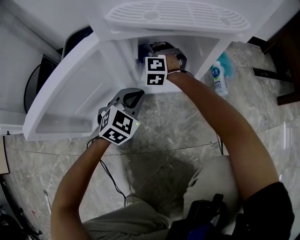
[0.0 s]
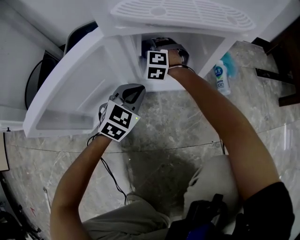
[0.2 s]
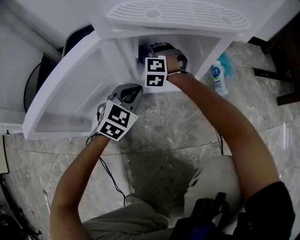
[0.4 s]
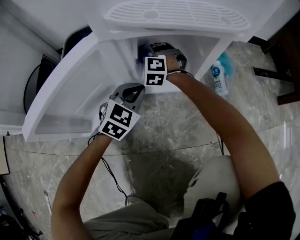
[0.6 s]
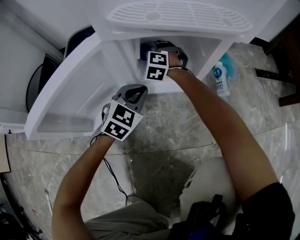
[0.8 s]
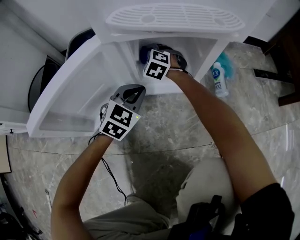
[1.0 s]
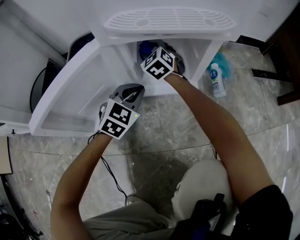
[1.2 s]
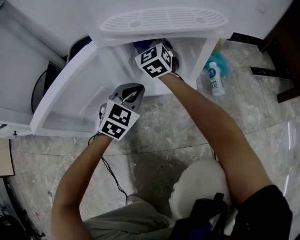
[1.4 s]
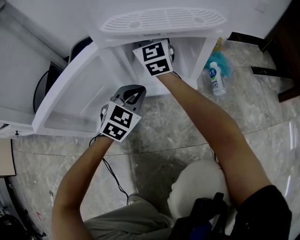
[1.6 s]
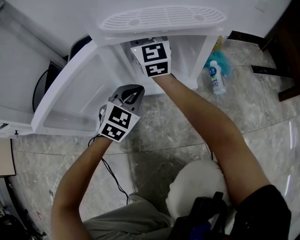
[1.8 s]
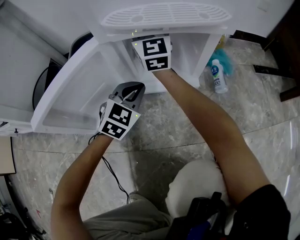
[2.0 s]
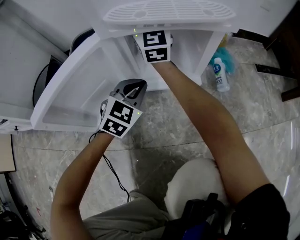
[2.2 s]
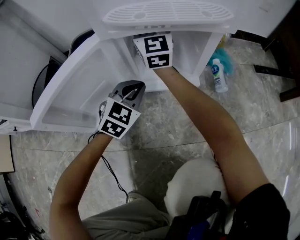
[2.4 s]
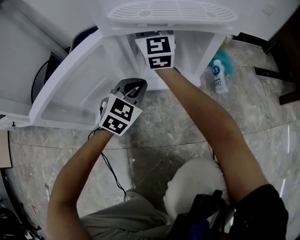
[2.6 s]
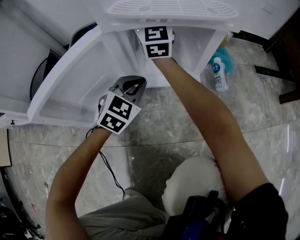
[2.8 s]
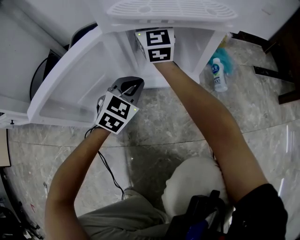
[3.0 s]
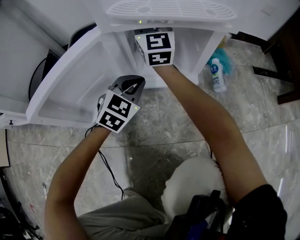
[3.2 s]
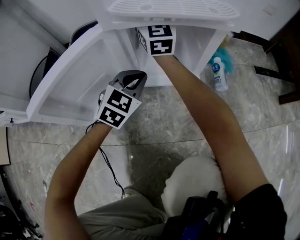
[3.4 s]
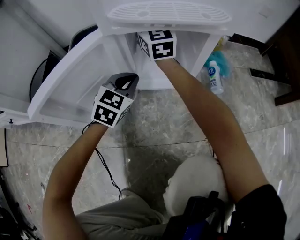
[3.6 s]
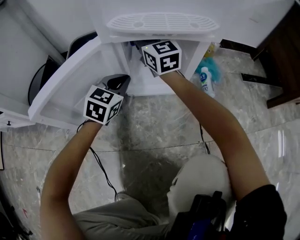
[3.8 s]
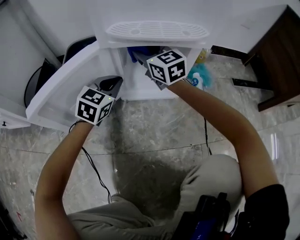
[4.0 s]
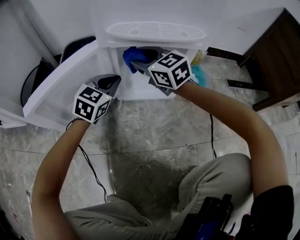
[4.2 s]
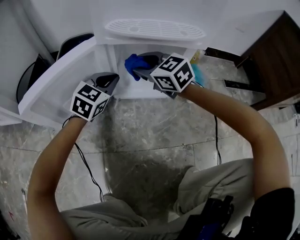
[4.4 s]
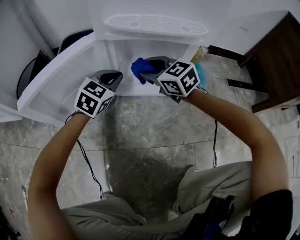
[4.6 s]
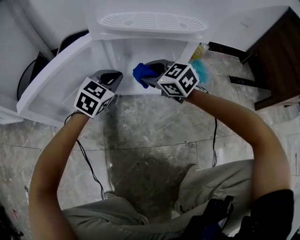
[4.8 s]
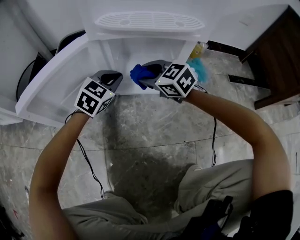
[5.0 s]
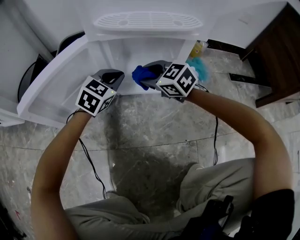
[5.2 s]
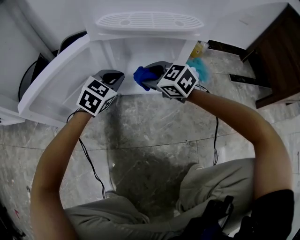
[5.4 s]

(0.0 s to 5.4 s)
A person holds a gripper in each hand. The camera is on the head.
0.0 s - 1.4 s: The right gripper shifts roughly 15 cm upward, and twists roughly 50 degrees clockwise, seen from behind. Meanwhile the left gripper moves roughly 5 cm.
1.4 s - 2.8 s: The right gripper is displaced upward by some 10 cm, and turns by approximately 30 degrees.
2.8 s - 4.0 s: The right gripper is displaced backward by about 10 cm, and turns by about 30 degrees; the left gripper shifts by approximately 5 cm.
4.0 s - 5.4 s: The right gripper shifts roughly 15 cm downward and backward, and changes its angle by approximately 30 degrees.

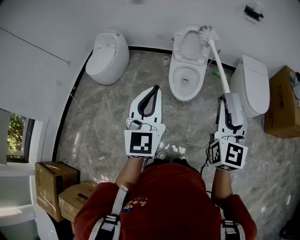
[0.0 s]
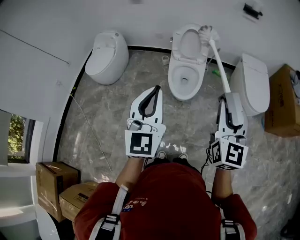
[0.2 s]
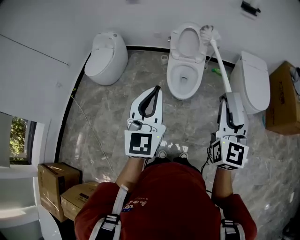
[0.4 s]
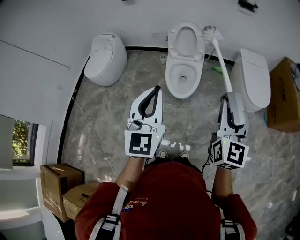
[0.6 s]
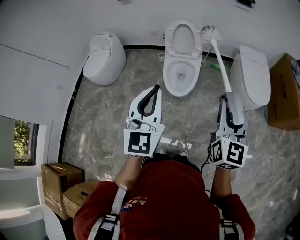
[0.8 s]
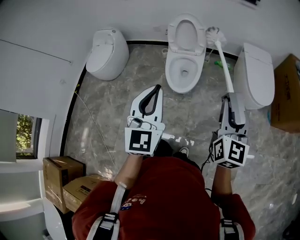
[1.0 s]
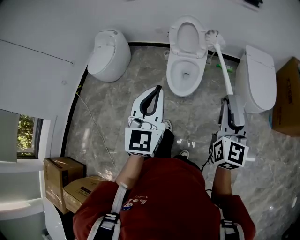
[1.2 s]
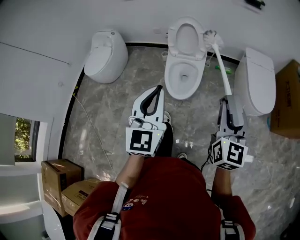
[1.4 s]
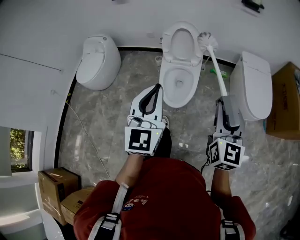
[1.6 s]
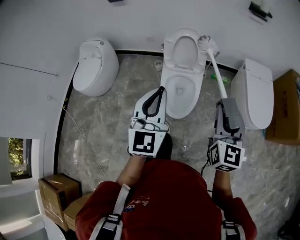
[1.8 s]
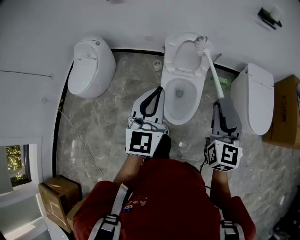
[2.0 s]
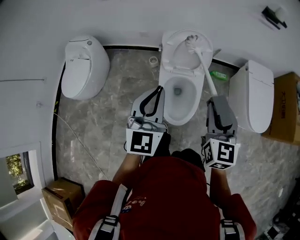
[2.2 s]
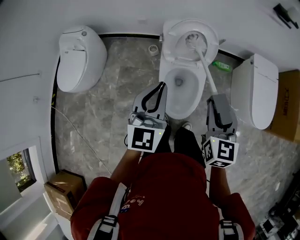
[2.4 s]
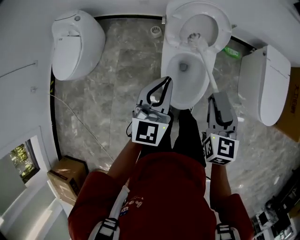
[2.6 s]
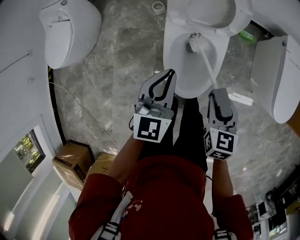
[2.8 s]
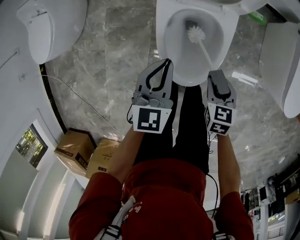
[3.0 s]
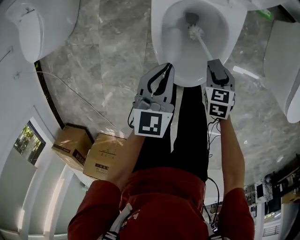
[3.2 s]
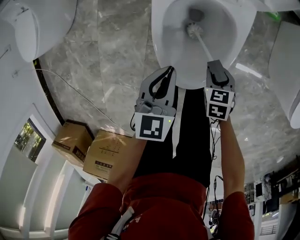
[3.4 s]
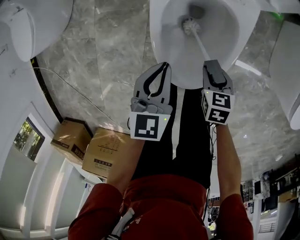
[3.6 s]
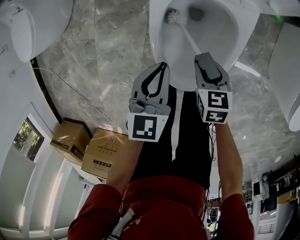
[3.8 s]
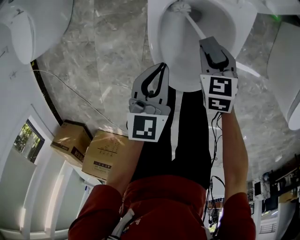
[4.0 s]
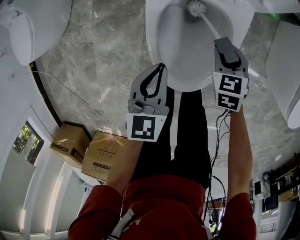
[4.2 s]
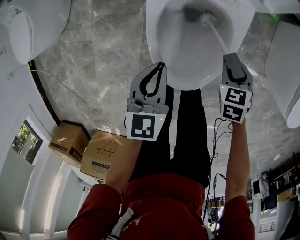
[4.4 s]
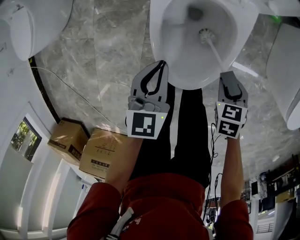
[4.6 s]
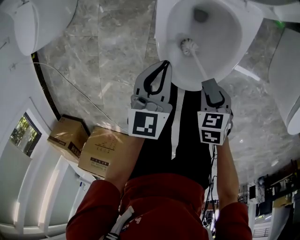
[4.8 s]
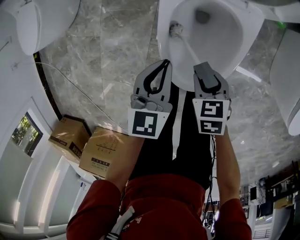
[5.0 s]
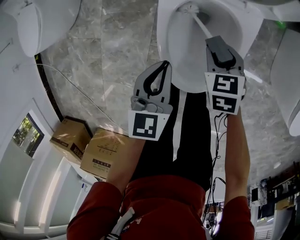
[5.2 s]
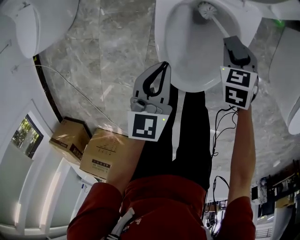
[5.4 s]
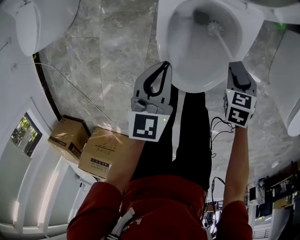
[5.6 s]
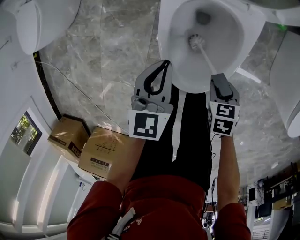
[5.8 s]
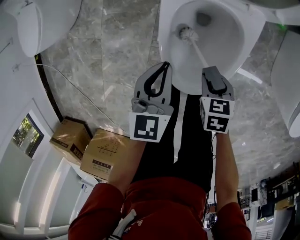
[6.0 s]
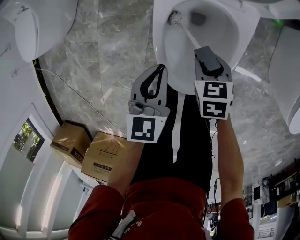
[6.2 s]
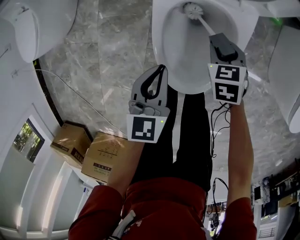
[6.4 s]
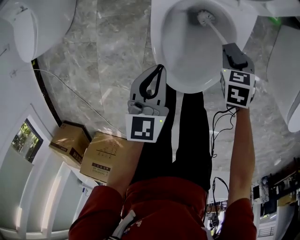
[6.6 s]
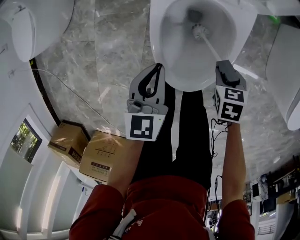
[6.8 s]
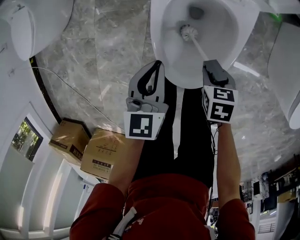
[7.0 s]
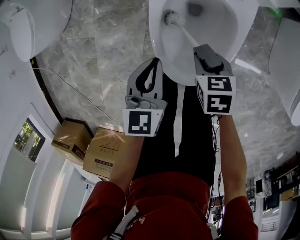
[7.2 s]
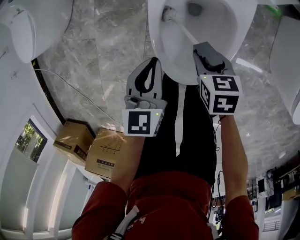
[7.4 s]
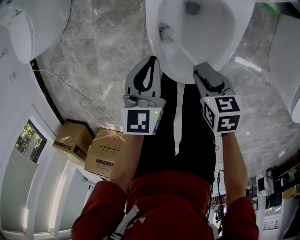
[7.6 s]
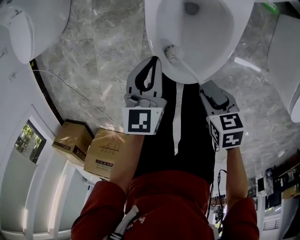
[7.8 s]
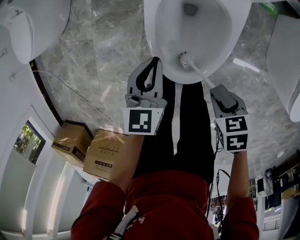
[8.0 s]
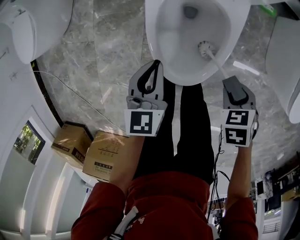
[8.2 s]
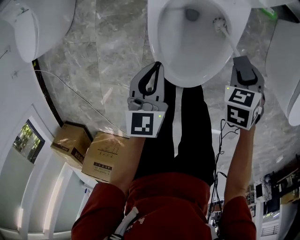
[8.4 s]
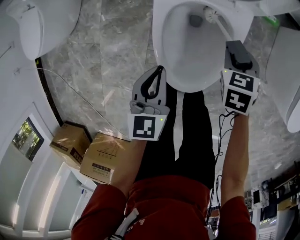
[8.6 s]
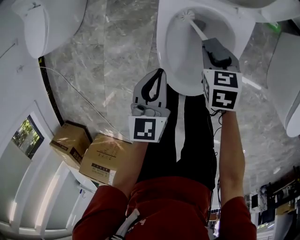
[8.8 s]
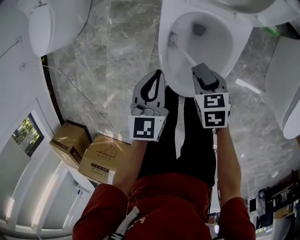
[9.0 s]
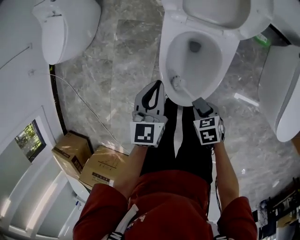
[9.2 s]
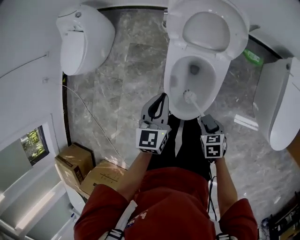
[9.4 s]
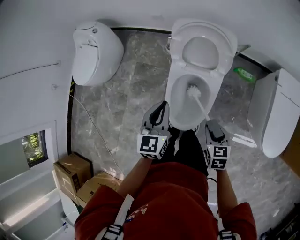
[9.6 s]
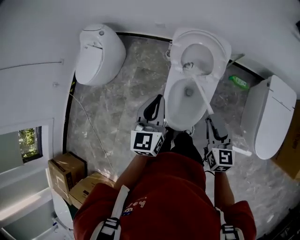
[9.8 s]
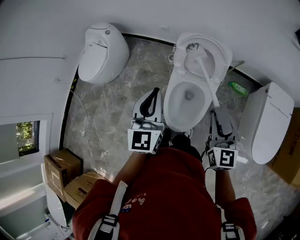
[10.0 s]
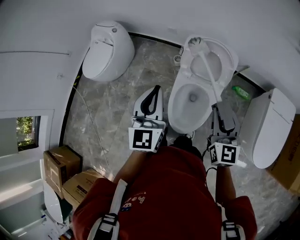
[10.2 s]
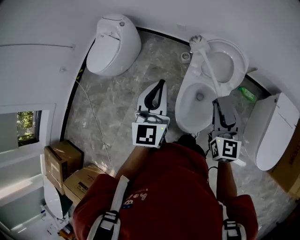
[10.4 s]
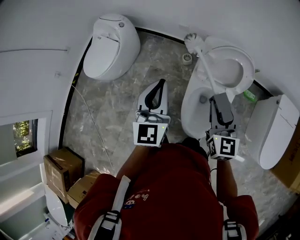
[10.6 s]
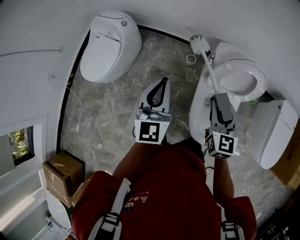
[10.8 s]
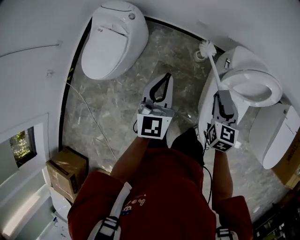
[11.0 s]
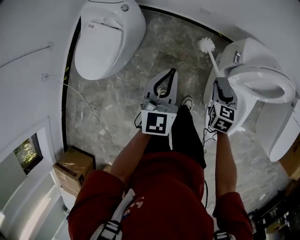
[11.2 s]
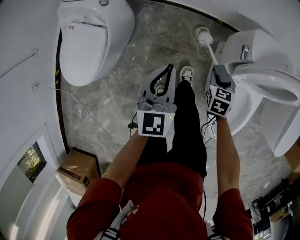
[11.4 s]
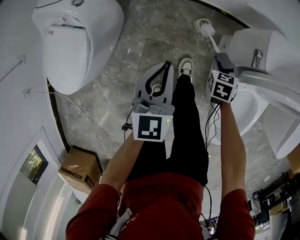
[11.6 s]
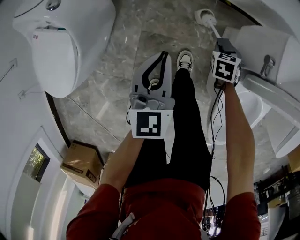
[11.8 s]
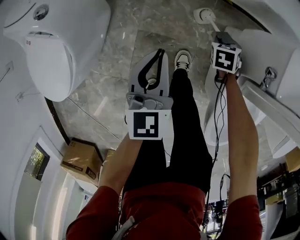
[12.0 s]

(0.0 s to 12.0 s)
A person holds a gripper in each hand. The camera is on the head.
0.0 s - 1.6 s: The right gripper is displaced forward, downward and to the right by about 20 cm. The left gripper goes roughly 20 cm forward and to the right.
1.6 s - 3.0 s: Both grippers travel together downward and forward, roughly 60 cm. The right gripper tips its fingers downward by about 50 degrees. Meanwhile the left gripper tips its fingers downward by some 30 degrees.
3.0 s - 4.4 s: The left gripper moves downward, about 10 cm; the right gripper moves downward and forward, some 15 cm.
4.4 s - 6.0 s: The right gripper changes place by some 10 cm.
9.0 s - 10.4 s: Both grippers move upward, about 40 cm. The left gripper tilts its fingers some 30 degrees upward, while the right gripper angles its fingers upward, by roughly 50 degrees.
10.4 s - 12.0 s: Both grippers are carried roughly 40 cm. Both grippers travel together downward, roughly 50 cm. The left gripper swivels about 20 degrees. The right gripper tilts its fingers some 60 degrees downward.

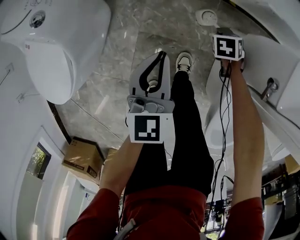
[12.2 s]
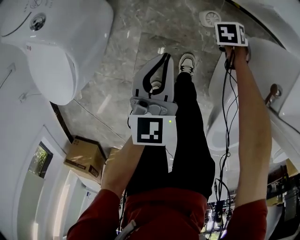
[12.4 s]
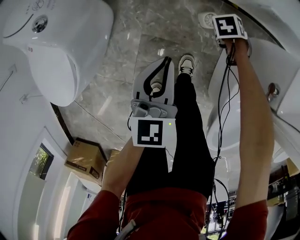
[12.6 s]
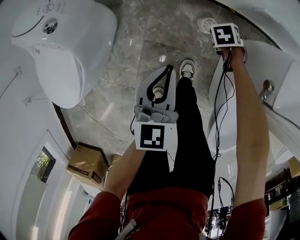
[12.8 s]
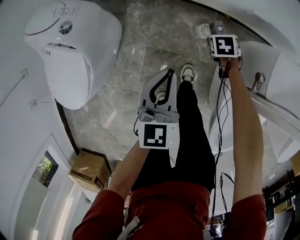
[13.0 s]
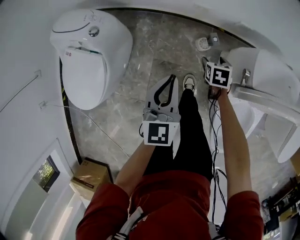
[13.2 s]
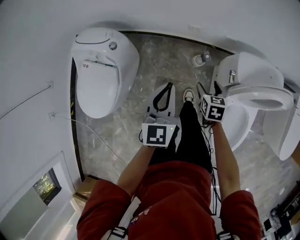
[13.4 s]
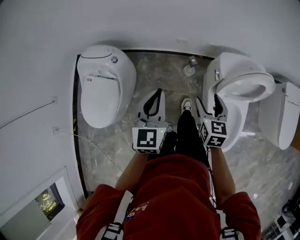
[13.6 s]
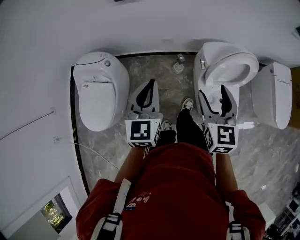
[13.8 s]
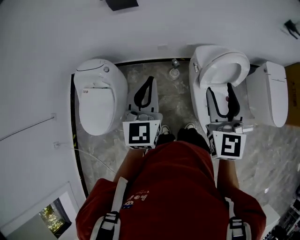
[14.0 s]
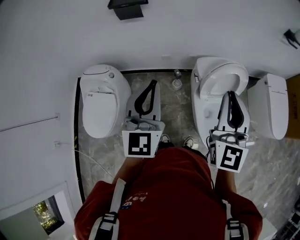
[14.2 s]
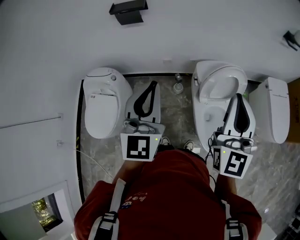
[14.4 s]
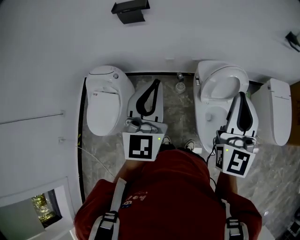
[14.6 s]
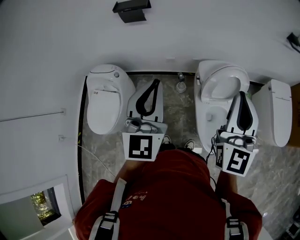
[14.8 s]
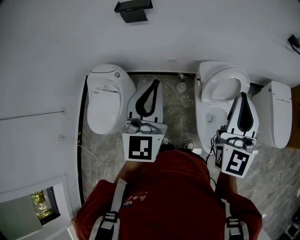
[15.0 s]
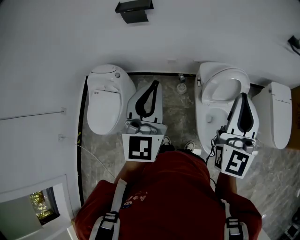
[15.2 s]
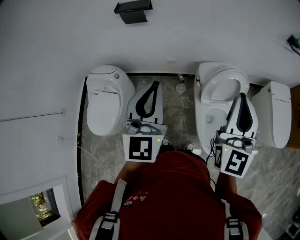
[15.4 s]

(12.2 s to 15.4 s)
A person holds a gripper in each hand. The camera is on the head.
12.2 s - 13.8 s: The left gripper moves upward, approximately 40 cm, and turns by roughly 20 degrees, while the right gripper is displaced upward by approximately 70 cm, tips its fingers upward by roughly 60 degrees, and opens.
13.8 s - 15.4 s: Both grippers travel together upward and to the right, roughly 20 cm. The right gripper tilts its fingers roughly 30 degrees upward, and closes up.

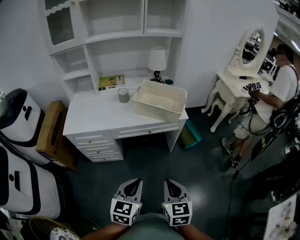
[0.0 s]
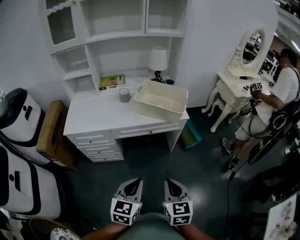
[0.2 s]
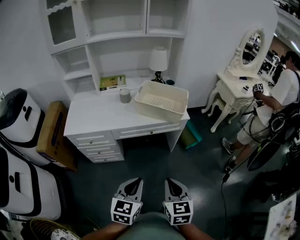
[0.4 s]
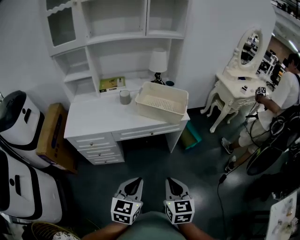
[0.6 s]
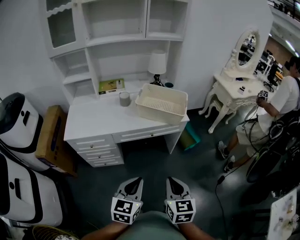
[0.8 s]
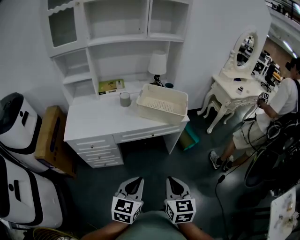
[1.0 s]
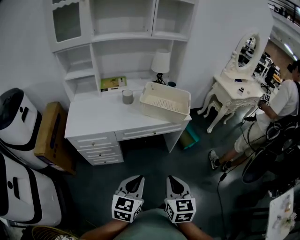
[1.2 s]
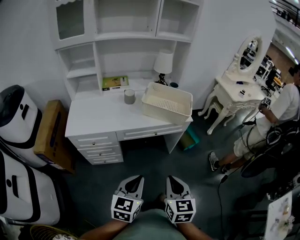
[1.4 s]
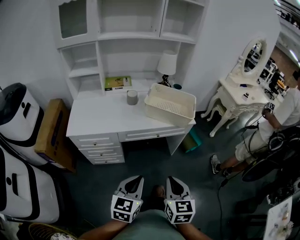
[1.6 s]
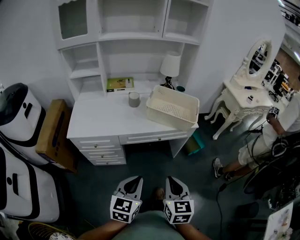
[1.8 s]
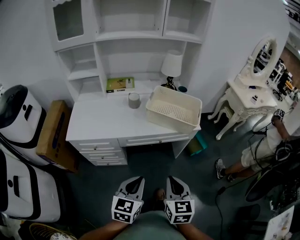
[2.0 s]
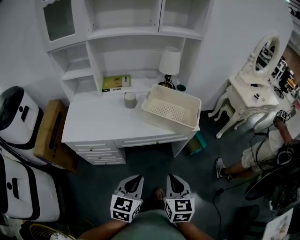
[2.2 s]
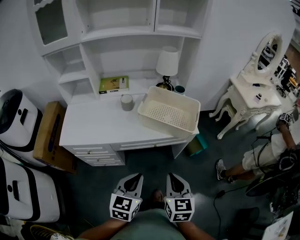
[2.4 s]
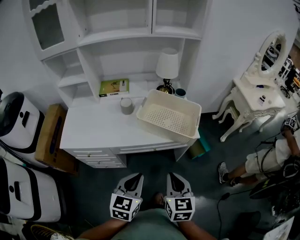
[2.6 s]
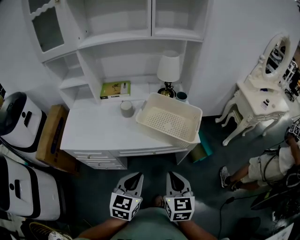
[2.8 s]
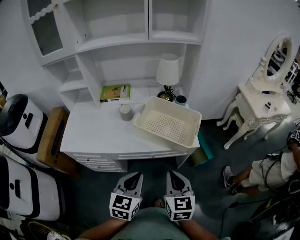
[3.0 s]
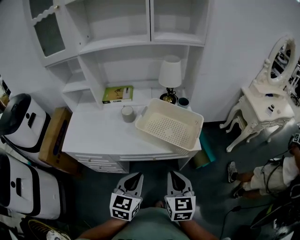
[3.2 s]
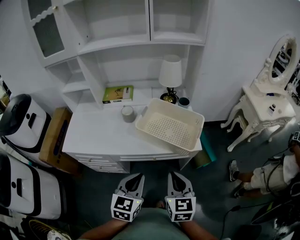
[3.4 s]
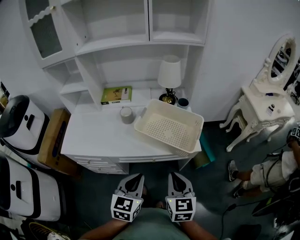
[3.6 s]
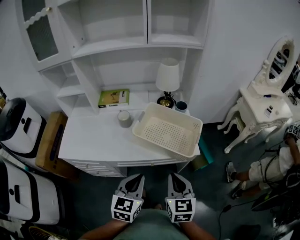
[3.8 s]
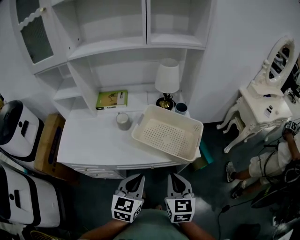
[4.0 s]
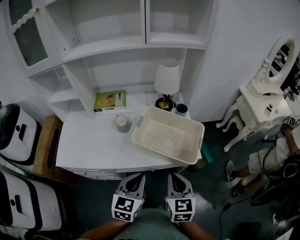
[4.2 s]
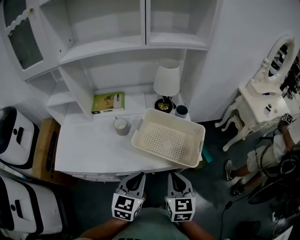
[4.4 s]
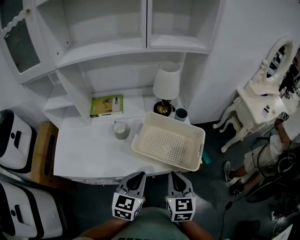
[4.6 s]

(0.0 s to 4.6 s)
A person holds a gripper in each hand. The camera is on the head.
0.0 s - 1.6 s: Both grippers travel together to the left, about 10 cm.
1.6 s - 3.0 s: The grippers both shift forward by about 25 cm.
3.0 s - 4.6 s: Both grippers move forward, about 15 cm.
